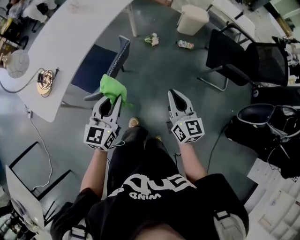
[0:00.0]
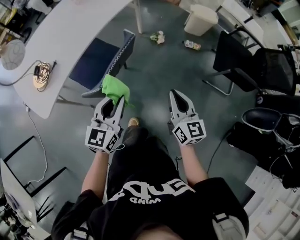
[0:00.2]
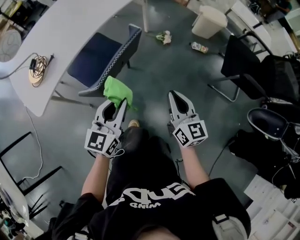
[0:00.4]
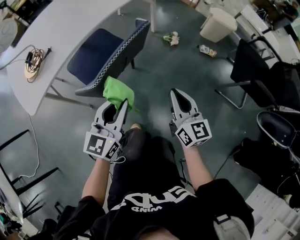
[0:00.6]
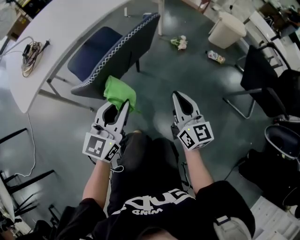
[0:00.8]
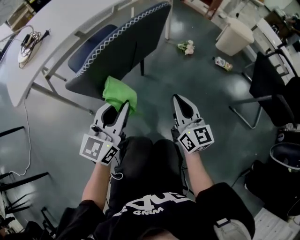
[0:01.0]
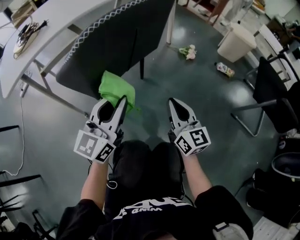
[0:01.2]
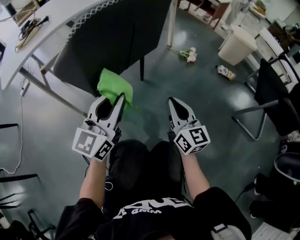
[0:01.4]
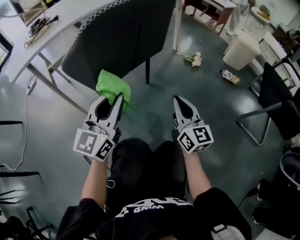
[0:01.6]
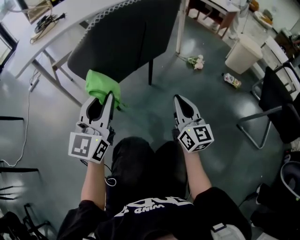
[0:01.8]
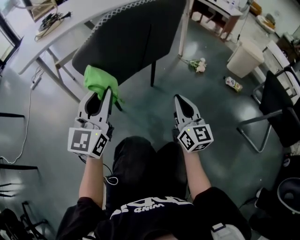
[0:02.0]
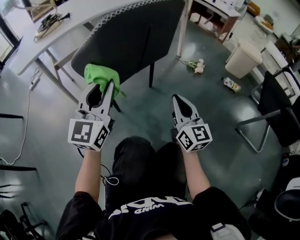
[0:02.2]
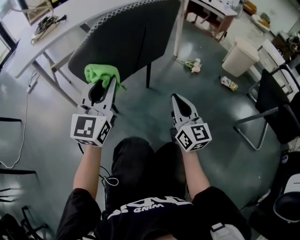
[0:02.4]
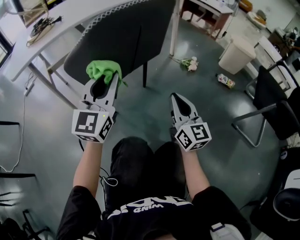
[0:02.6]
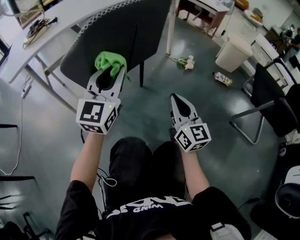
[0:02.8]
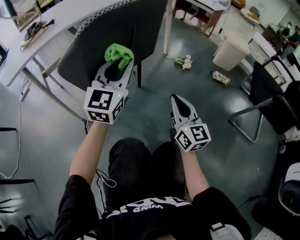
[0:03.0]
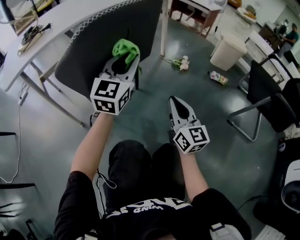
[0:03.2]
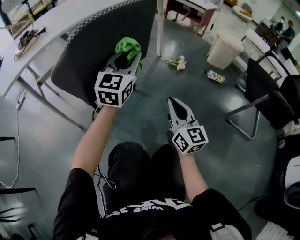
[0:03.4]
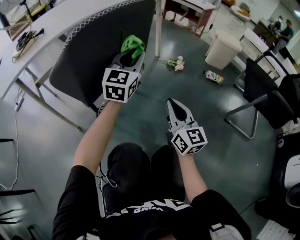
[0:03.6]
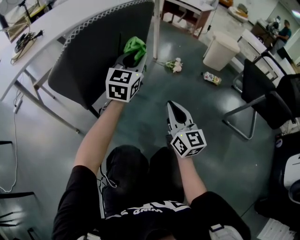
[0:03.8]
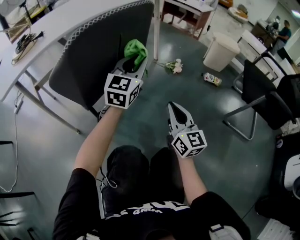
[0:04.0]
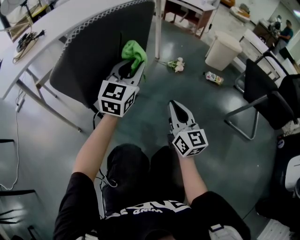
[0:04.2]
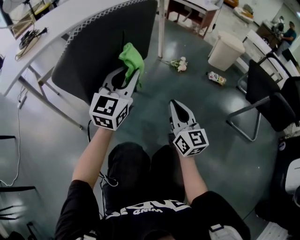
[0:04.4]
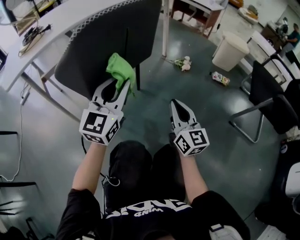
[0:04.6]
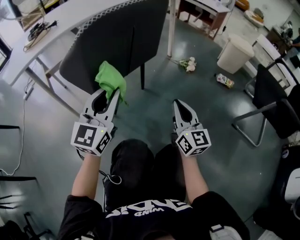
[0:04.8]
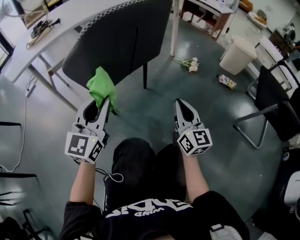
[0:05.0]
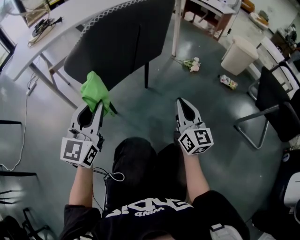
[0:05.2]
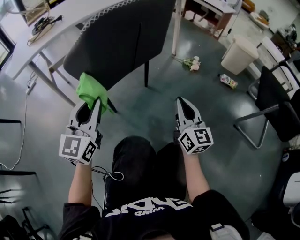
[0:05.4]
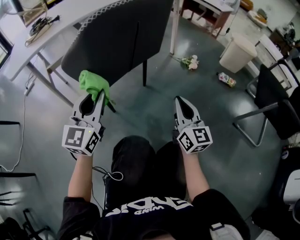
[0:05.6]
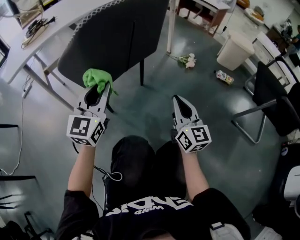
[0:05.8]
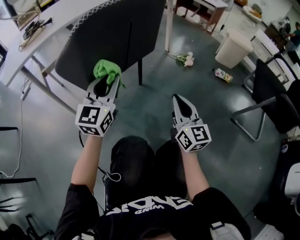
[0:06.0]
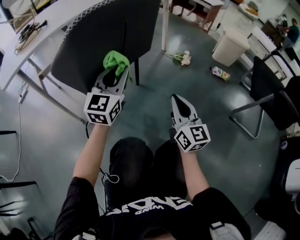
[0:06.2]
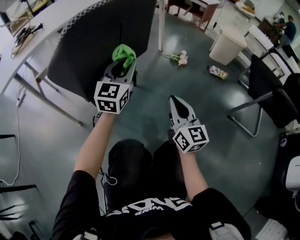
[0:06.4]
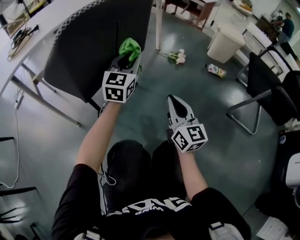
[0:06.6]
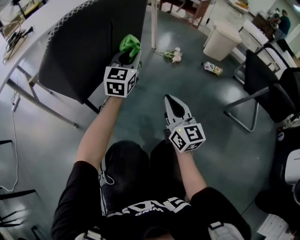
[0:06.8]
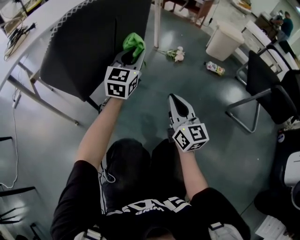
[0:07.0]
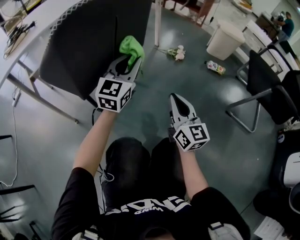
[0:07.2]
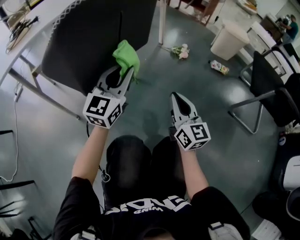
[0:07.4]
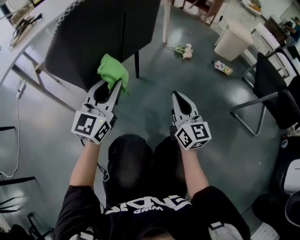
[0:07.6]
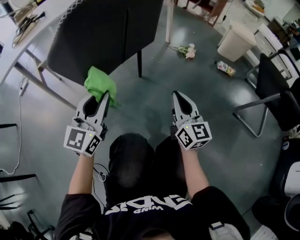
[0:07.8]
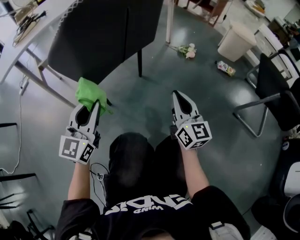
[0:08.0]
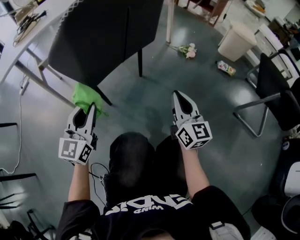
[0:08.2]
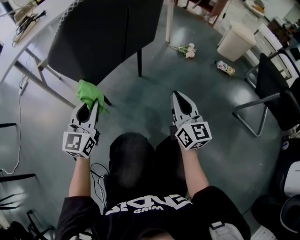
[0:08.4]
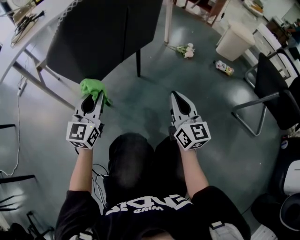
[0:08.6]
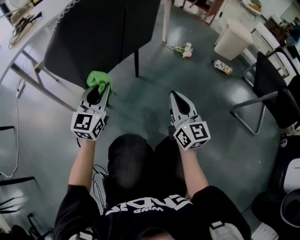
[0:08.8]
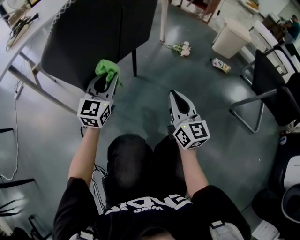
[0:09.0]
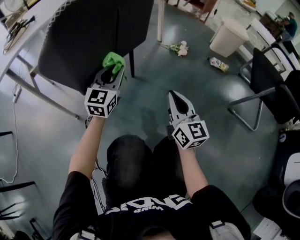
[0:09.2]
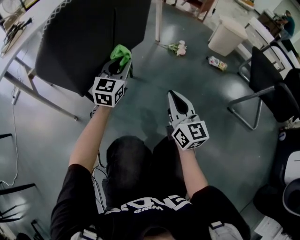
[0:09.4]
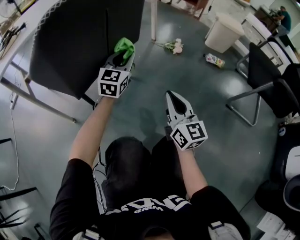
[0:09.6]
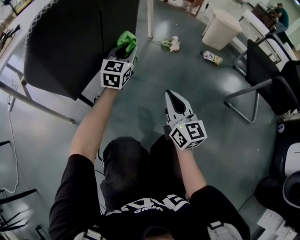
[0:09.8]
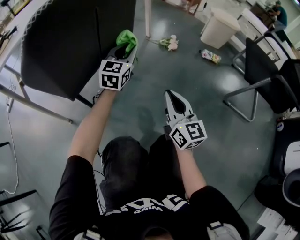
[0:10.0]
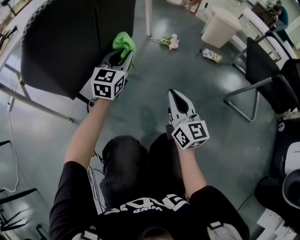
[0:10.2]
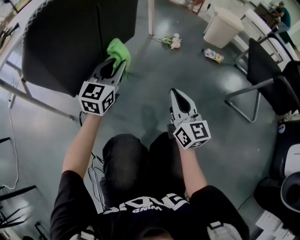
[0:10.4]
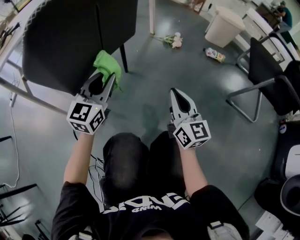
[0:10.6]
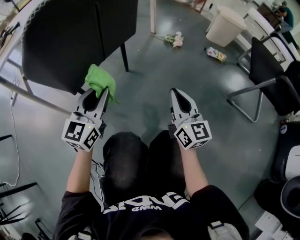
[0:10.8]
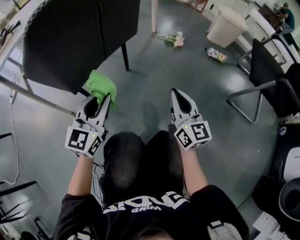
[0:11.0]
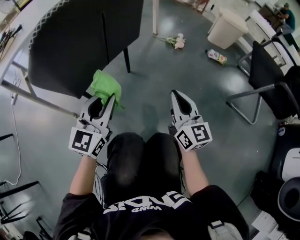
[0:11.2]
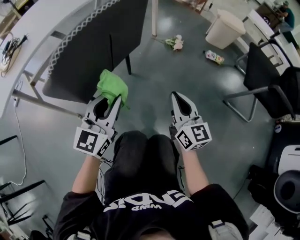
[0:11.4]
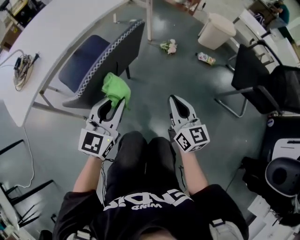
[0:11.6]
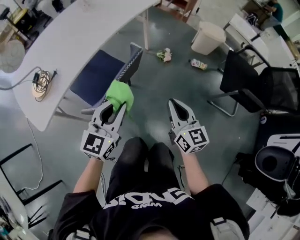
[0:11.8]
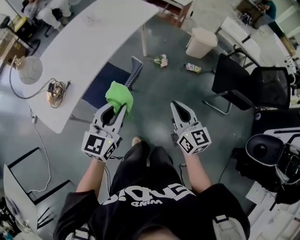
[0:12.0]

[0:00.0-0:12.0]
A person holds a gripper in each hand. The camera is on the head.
0:00.0 to 0:01.6: The two grippers go approximately 35 cm downward. The right gripper changes its angle by approximately 20 degrees; the left gripper rotates approximately 20 degrees.
0:01.6 to 0:03.0: The left gripper shifts approximately 10 cm forward and to the right.
0:03.0 to 0:04.4: The left gripper travels forward and back again, roughly 10 cm each way.
0:04.4 to 0:06.0: The left gripper is displaced to the left by approximately 10 cm.
0:06.0 to 0:07.6: The left gripper goes forward and returns, about 15 cm each way.
0:07.6 to 0:09.0: The left gripper travels downward and forward by some 10 cm.
0:09.0 to 0:10.4: The left gripper heads to the right, covering roughly 10 cm, and travels forward and back again, approximately 15 cm each way.
0:10.4 to 0:12.0: The grippers both shift upward by some 50 cm.

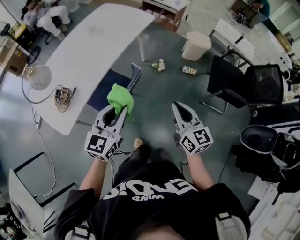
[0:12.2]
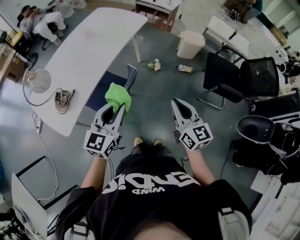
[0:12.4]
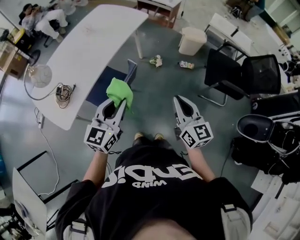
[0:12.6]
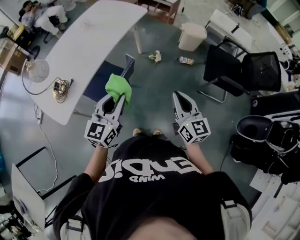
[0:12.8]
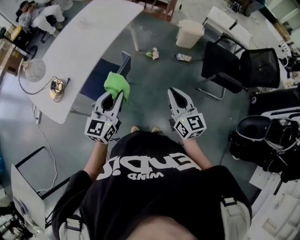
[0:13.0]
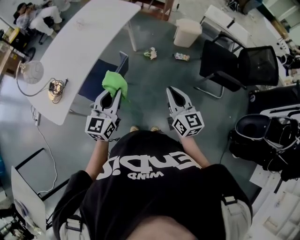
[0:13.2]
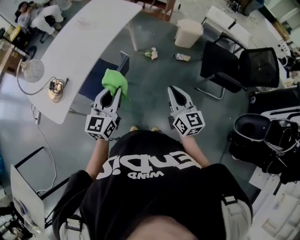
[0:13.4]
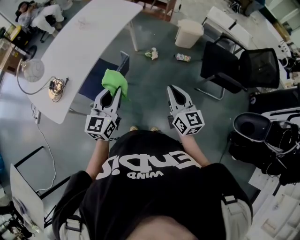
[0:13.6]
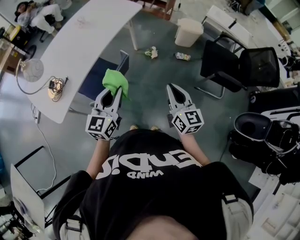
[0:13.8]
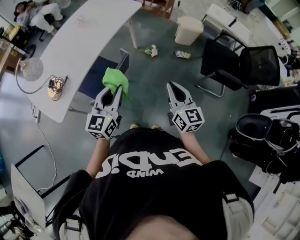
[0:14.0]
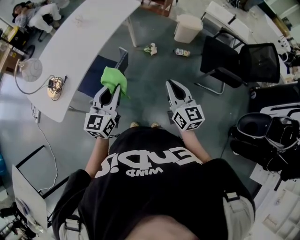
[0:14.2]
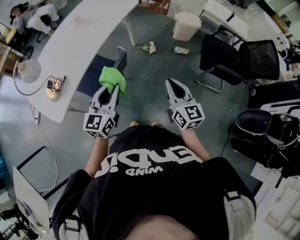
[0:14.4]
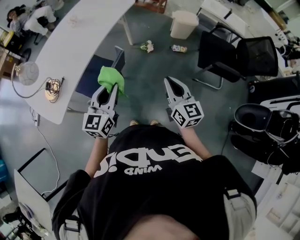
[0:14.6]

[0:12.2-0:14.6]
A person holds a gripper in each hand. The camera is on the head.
0:12.2 to 0:13.4: The two grippers go about 5 cm to the right.
0:13.4 to 0:14.6: Neither gripper changes place.

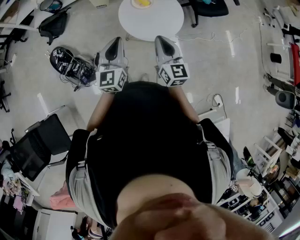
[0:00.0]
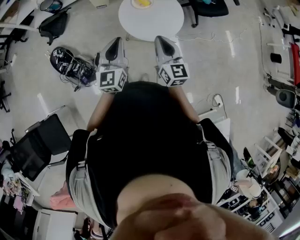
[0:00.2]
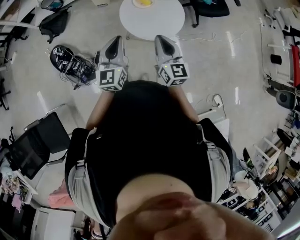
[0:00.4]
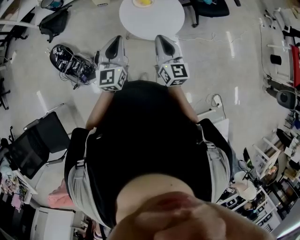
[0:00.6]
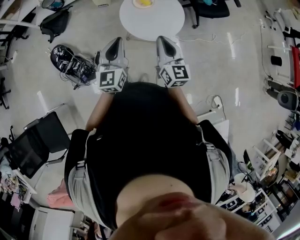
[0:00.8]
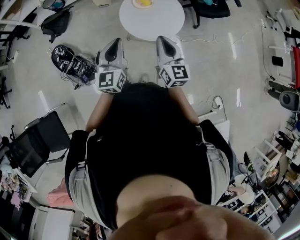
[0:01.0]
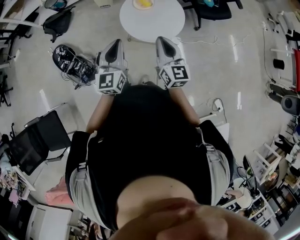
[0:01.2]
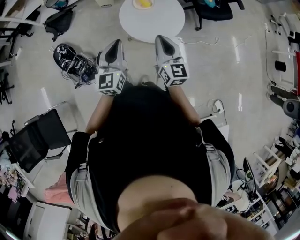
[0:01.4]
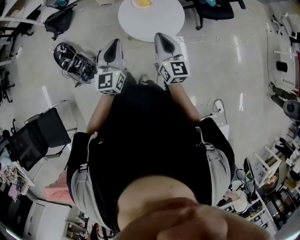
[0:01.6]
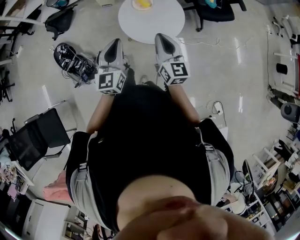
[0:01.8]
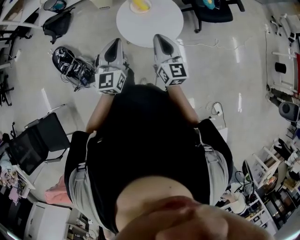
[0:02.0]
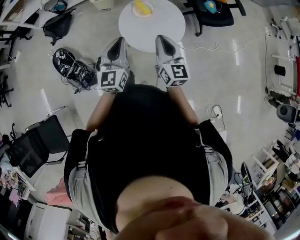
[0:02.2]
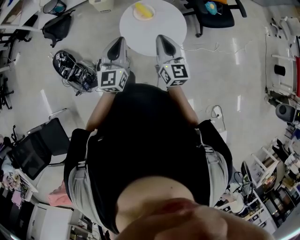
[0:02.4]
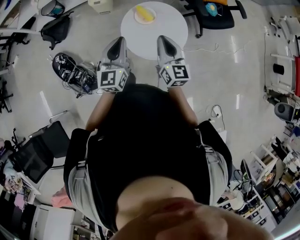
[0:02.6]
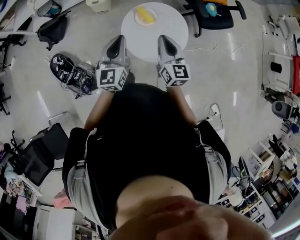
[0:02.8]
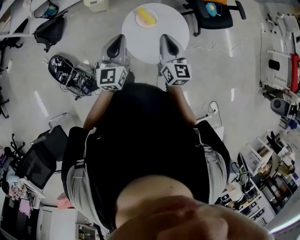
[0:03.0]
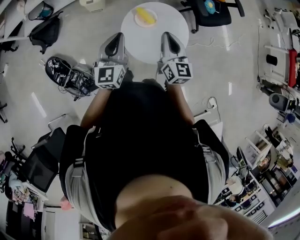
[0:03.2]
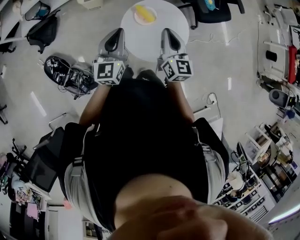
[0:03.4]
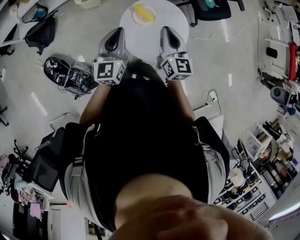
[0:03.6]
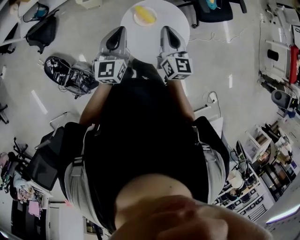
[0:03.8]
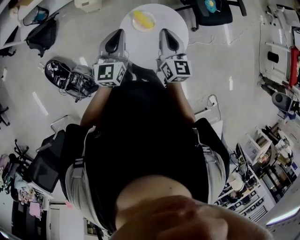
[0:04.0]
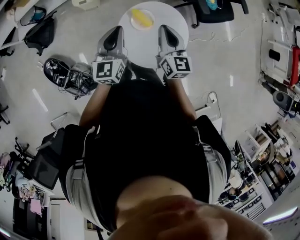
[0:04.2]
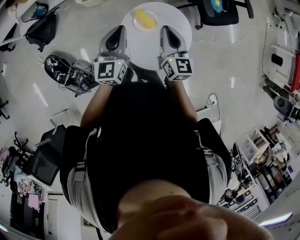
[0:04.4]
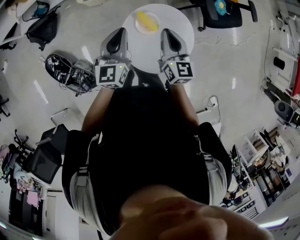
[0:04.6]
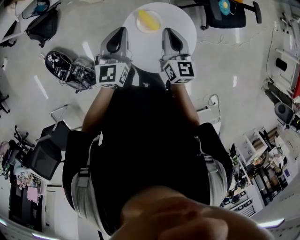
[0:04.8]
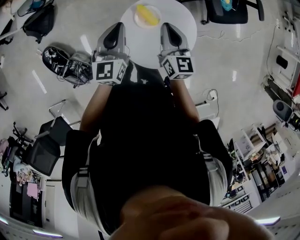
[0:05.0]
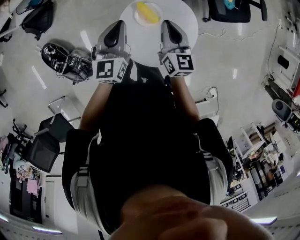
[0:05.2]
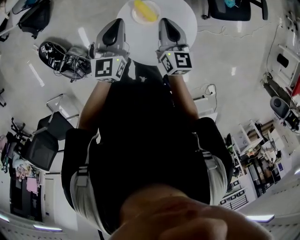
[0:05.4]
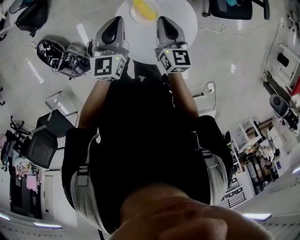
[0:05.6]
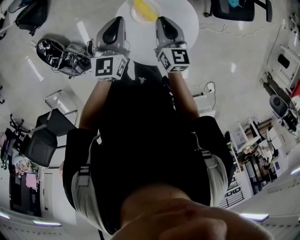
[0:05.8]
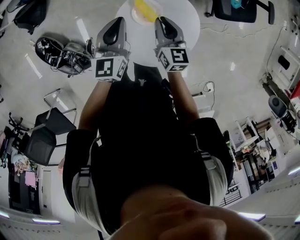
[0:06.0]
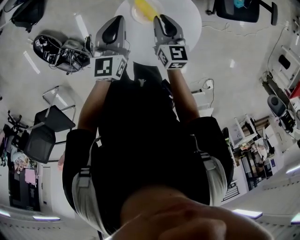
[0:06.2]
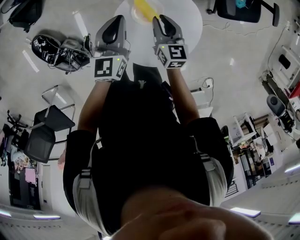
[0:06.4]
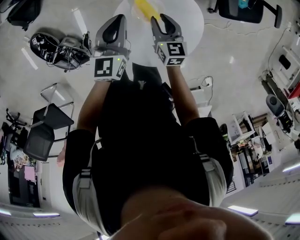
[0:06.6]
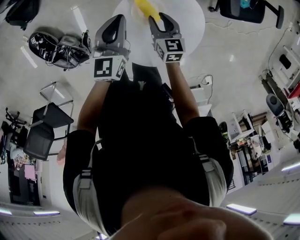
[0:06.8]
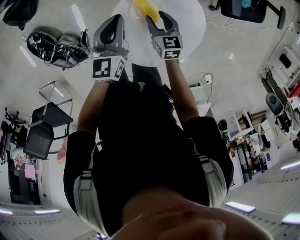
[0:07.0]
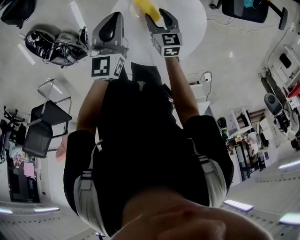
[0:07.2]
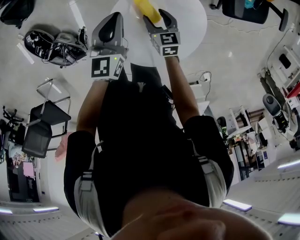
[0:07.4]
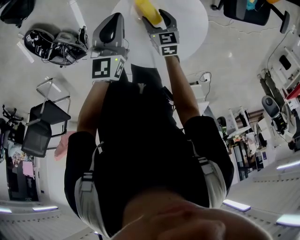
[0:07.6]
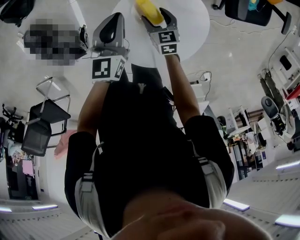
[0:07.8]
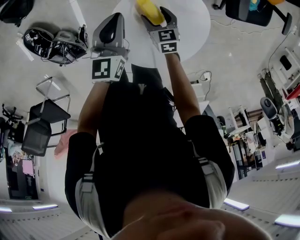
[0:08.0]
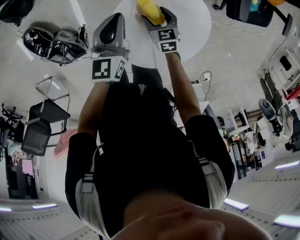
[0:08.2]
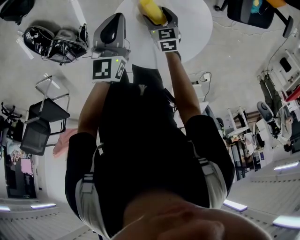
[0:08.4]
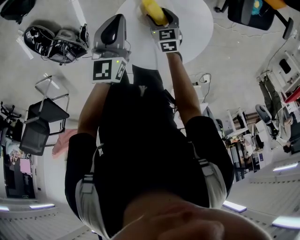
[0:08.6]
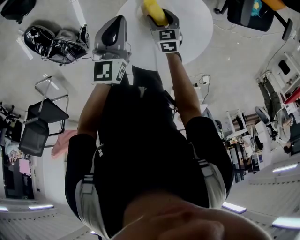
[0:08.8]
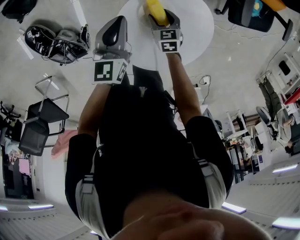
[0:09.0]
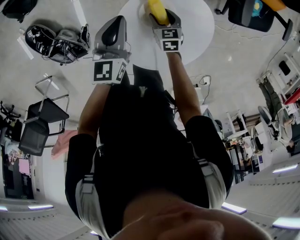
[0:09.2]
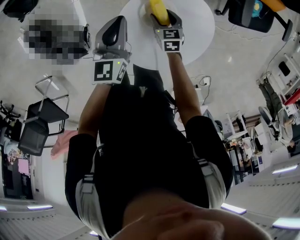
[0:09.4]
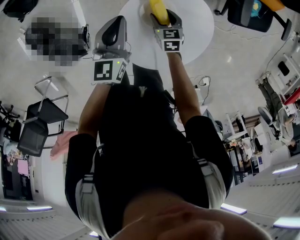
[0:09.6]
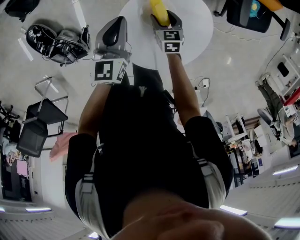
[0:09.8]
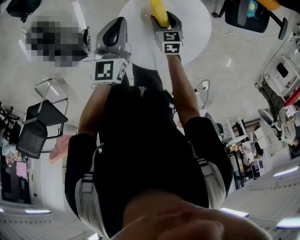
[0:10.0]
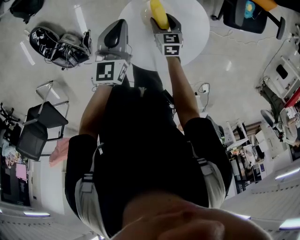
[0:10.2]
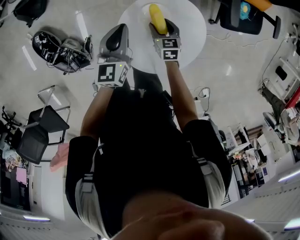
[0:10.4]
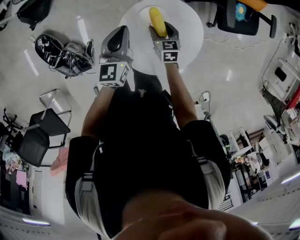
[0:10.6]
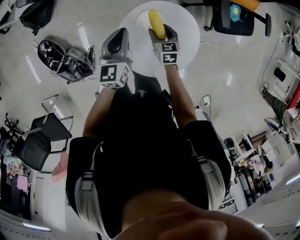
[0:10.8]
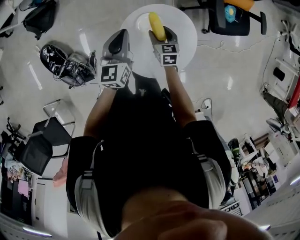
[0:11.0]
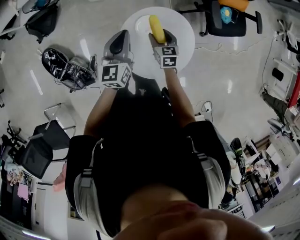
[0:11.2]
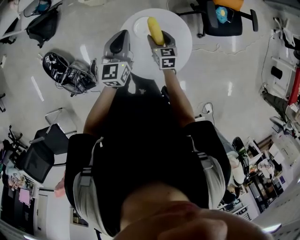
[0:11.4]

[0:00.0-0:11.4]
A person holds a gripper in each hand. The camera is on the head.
0:00.0 to 0:01.4: The grippers move only a little.
0:01.4 to 0:02.8: Both grippers move forward, about 20 cm.
0:02.8 to 0:04.2: The grippers both shift forward by some 15 cm.
0:04.2 to 0:05.6: The two grippers go some 10 cm downward and forward.
0:05.6 to 0:07.2: The right gripper goes some 20 cm downward, rotates approximately 30 degrees, and opens. Meanwhile the left gripper shifts some 10 cm downward.
0:07.2 to 0:08.6: The right gripper travels downward by roughly 5 cm.
0:08.6 to 0:10.0: The grippers make only small movements.
0:10.0 to 0:11.4: The grippers both shift upward by some 15 cm.
